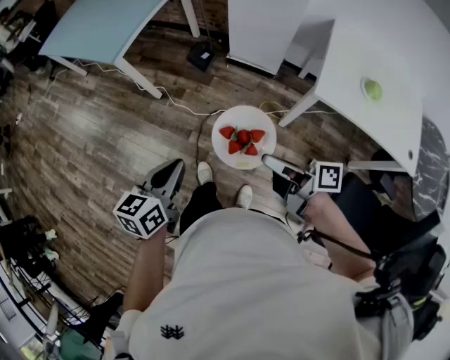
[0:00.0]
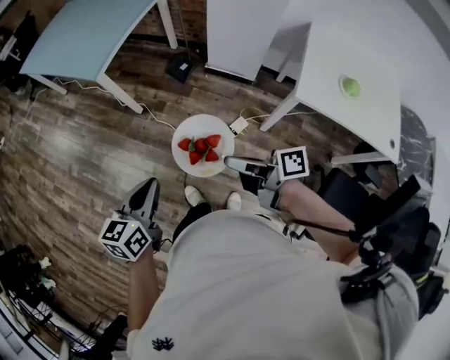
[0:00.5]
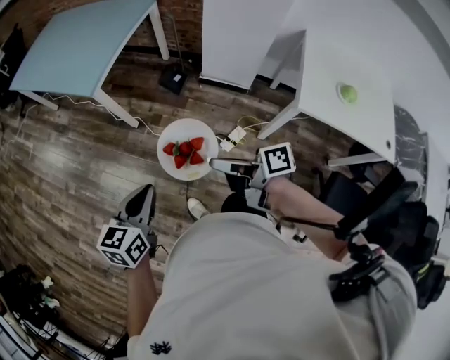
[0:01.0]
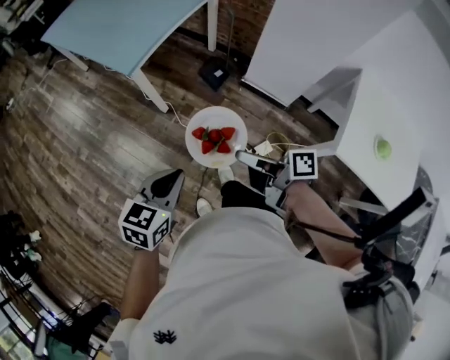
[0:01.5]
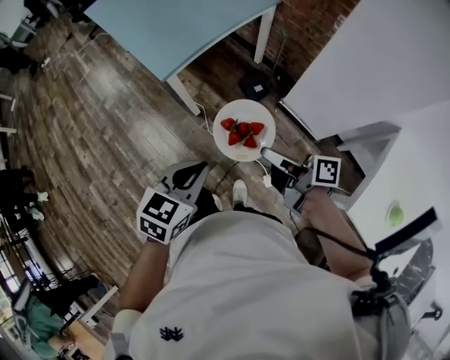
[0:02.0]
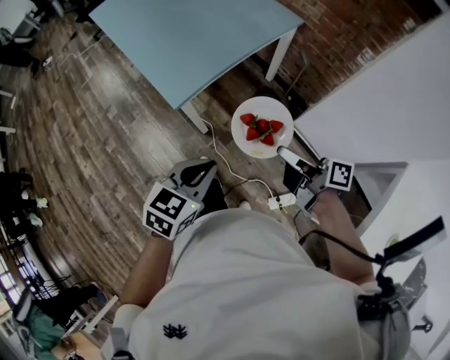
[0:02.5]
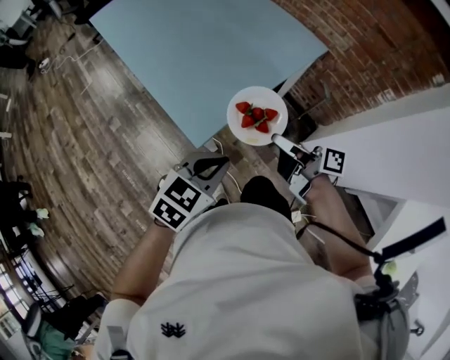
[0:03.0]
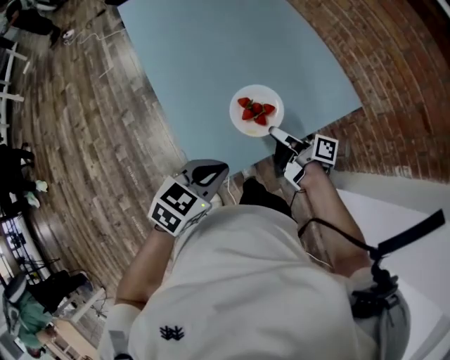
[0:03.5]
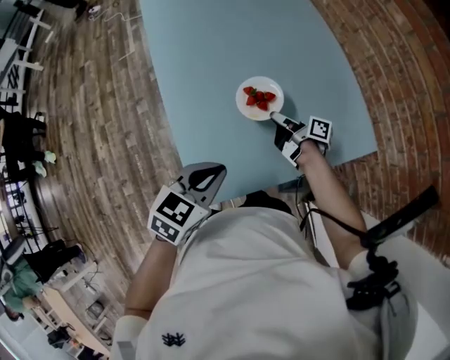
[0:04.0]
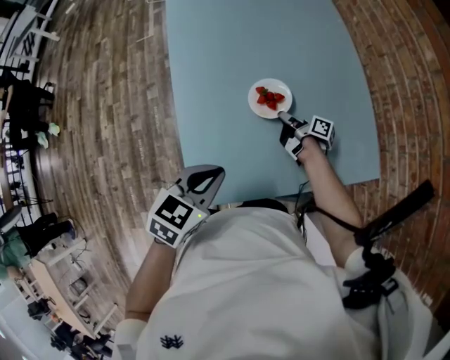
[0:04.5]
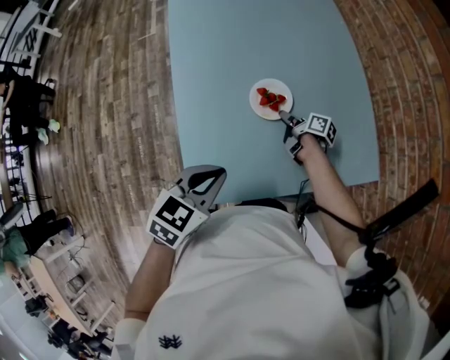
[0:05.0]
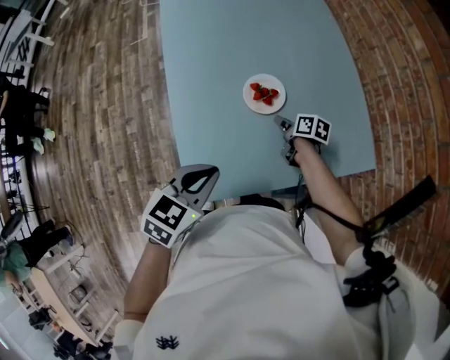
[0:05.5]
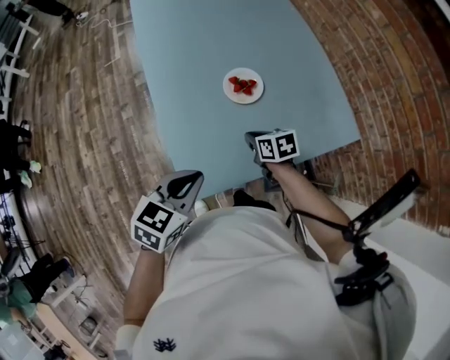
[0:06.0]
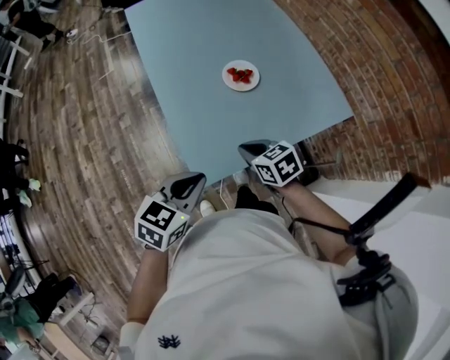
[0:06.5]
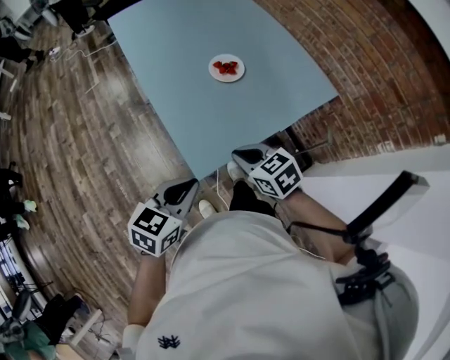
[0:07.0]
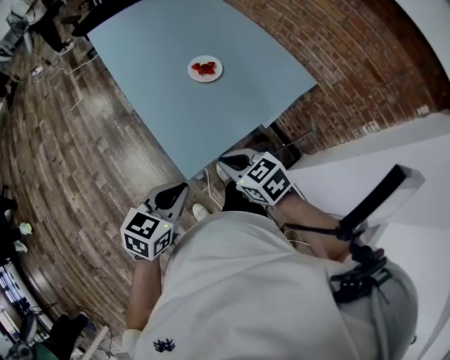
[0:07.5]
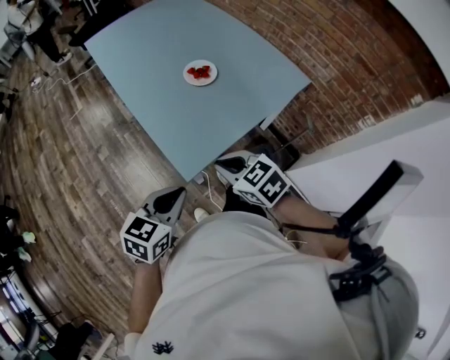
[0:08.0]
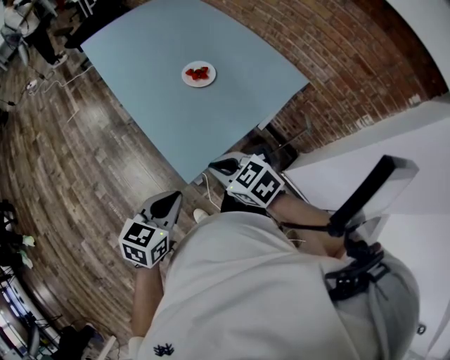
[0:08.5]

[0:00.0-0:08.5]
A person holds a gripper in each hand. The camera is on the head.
0:00.0 to 0:02.0: Both grippers move forward, approximately 35 cm.
0:02.0 to 0:04.0: Both grippers are carried forward, some 70 cm. The right gripper turns by about 20 degrees, while the left gripper swivels approximately 20 degrees.
0:04.0 to 0:06.5: The left gripper is displaced backward and to the left by roughly 15 cm. Meanwhile the right gripper shifts roughly 25 cm backward and to the left, twists about 70 degrees counterclockwise, seen from behind, and opens, then closes once more.
0:06.5 to 0:08.5: The left gripper moves backward and to the left, roughly 10 cm. The right gripper is displaced backward, upward and to the left by about 15 cm.

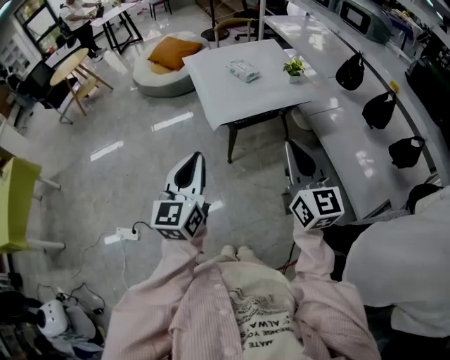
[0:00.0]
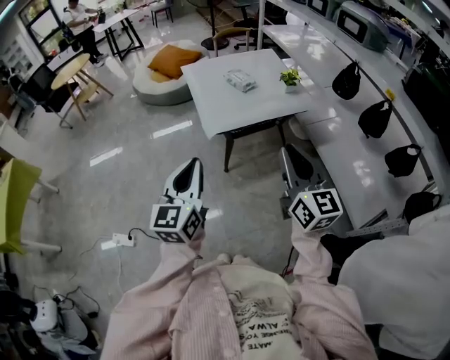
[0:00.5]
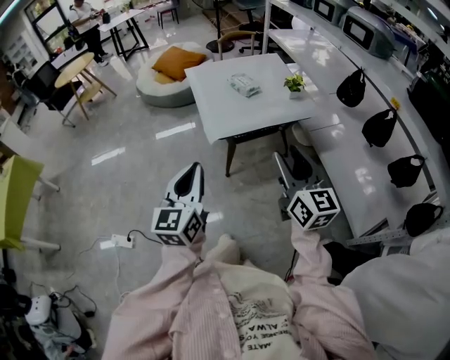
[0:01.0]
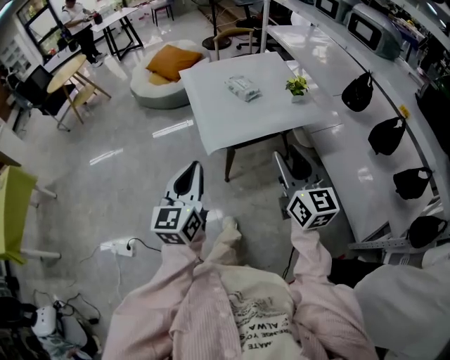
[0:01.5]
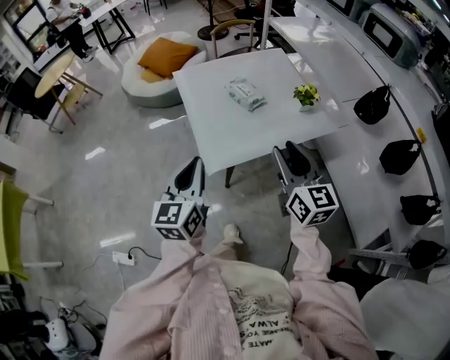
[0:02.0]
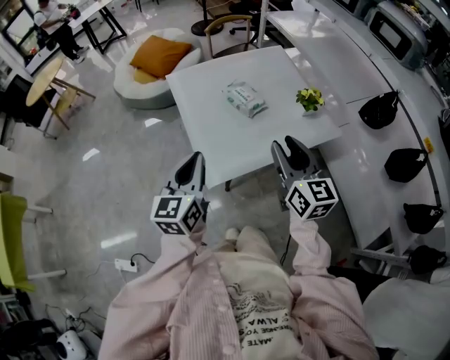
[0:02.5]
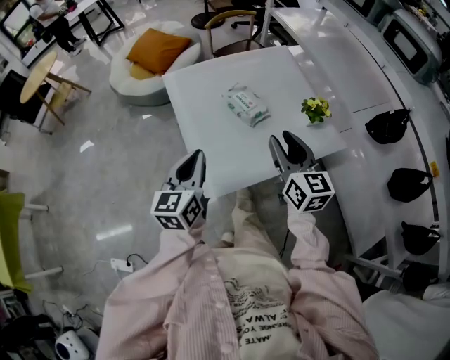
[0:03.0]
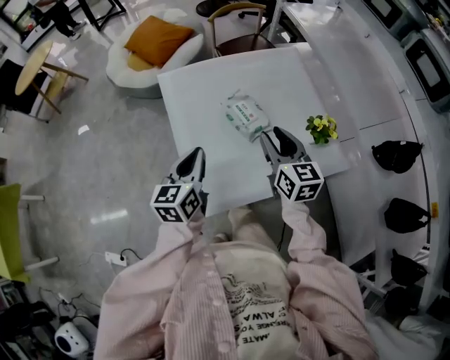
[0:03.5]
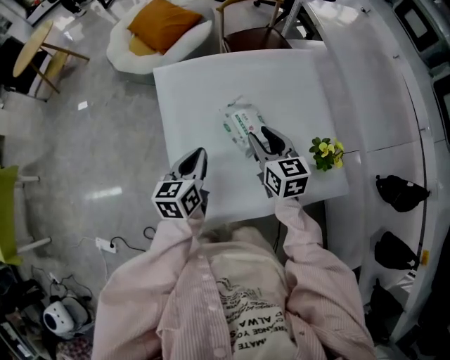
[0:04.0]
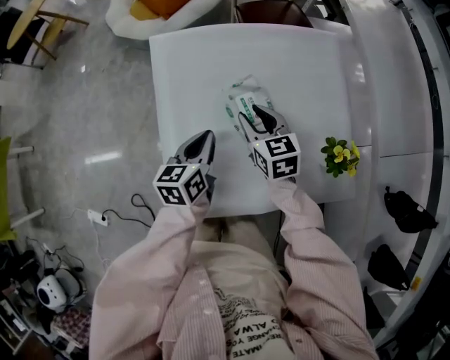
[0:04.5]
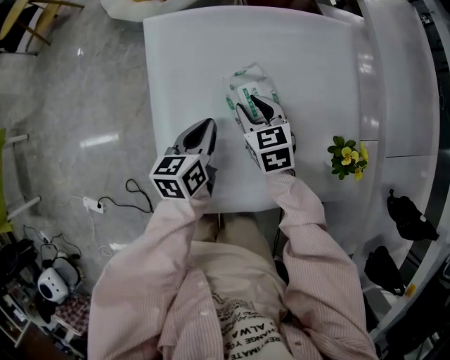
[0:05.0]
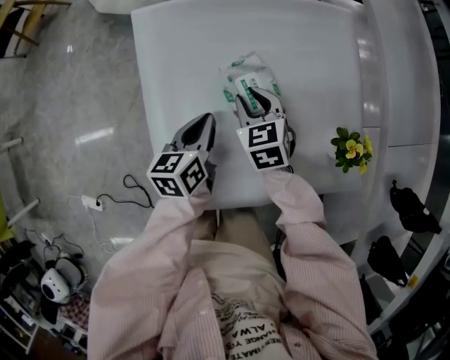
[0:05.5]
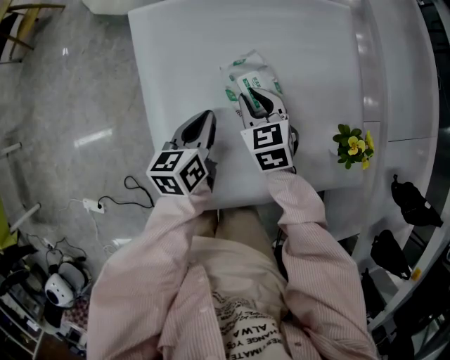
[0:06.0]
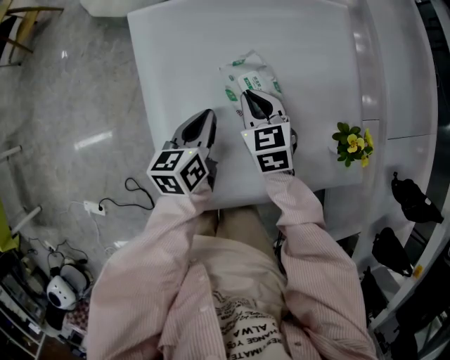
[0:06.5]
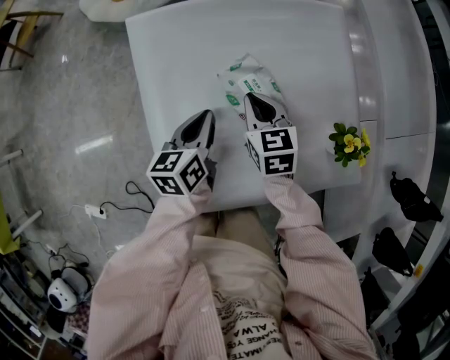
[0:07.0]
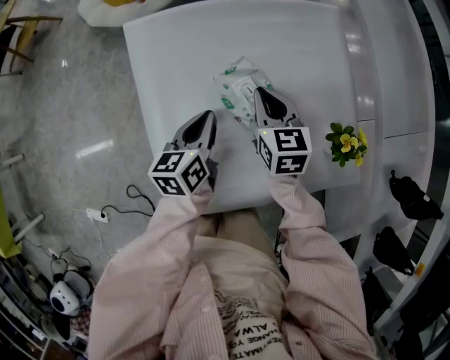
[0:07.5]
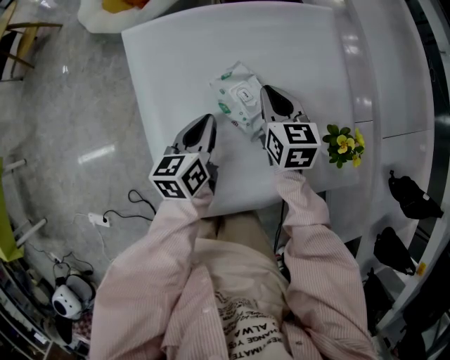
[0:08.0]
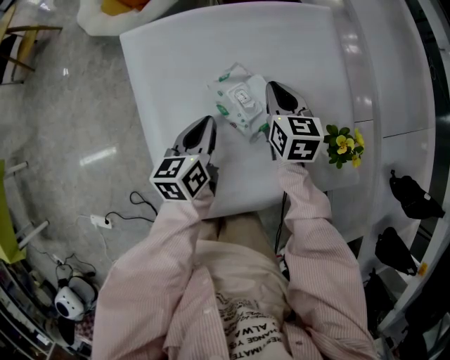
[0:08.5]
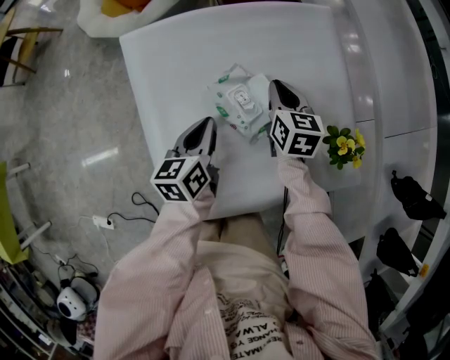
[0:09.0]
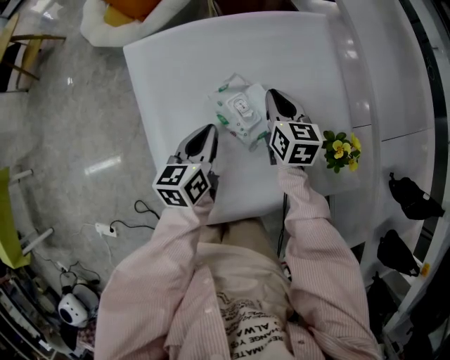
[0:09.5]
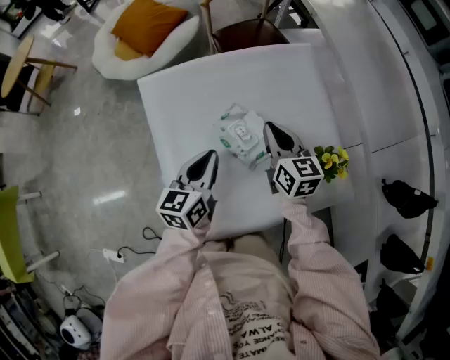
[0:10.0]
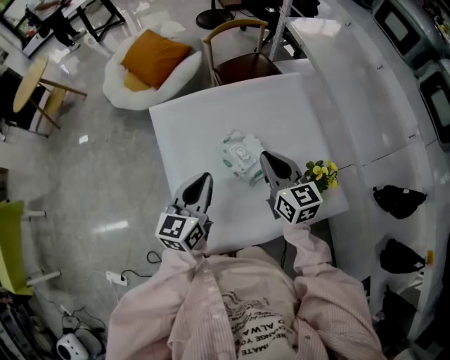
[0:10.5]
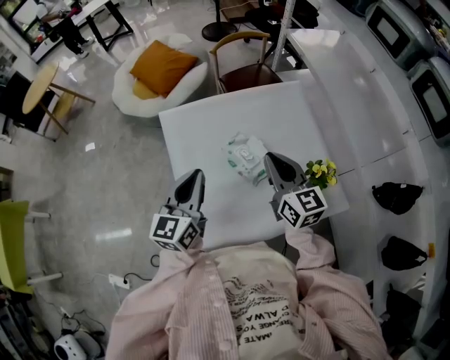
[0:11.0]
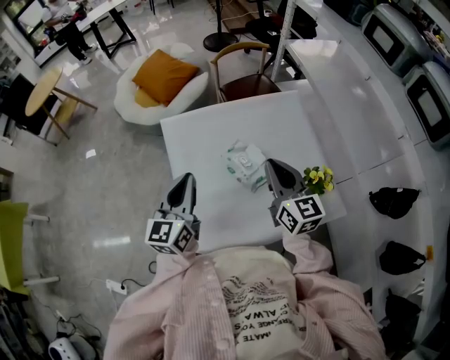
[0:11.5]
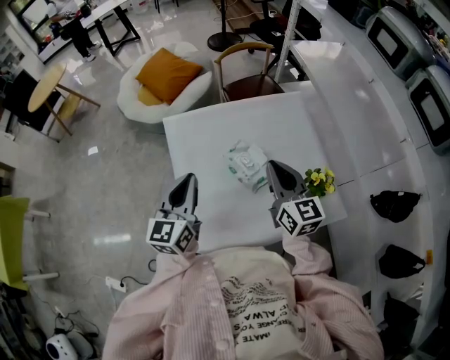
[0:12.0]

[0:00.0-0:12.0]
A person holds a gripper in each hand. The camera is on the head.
0:00.0 to 0:02.0: The grippers both shift forward by some 25 cm. The right gripper opens its fingers.
0:02.0 to 0:04.0: The two grippers go about 40 cm forward and downward. The left gripper changes its angle by approximately 20 degrees; the right gripper turns by some 30 degrees.
0:04.0 to 0:06.0: The left gripper shifts some 10 cm downward, while the right gripper goes some 15 cm downward and forward, and swivels about 30 degrees.
0:06.0 to 0:08.0: The right gripper is displaced to the right and upward by about 10 cm, and changes its angle by some 20 degrees.
0:08.0 to 0:10.0: Both grippers travel together upward, roughly 5 cm.
0:10.0 to 0:12.0: The left gripper shifts approximately 15 cm upward and to the left, and changes its angle by about 20 degrees, while the right gripper shifts approximately 15 cm upward and backward.

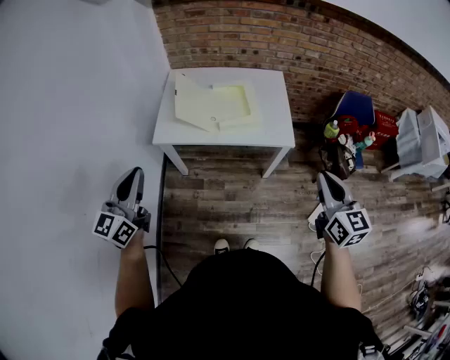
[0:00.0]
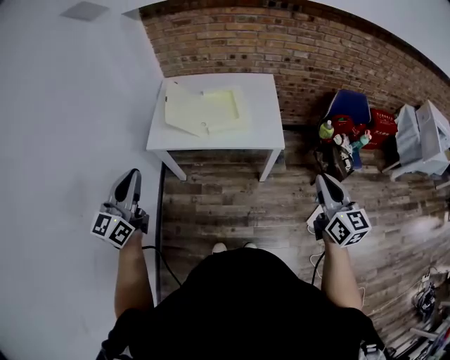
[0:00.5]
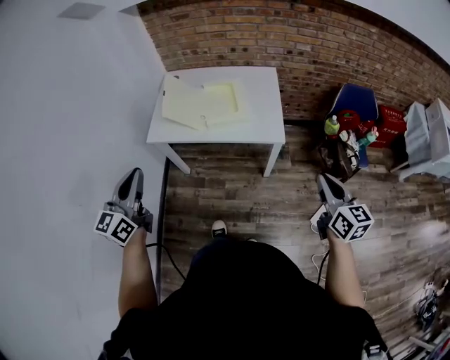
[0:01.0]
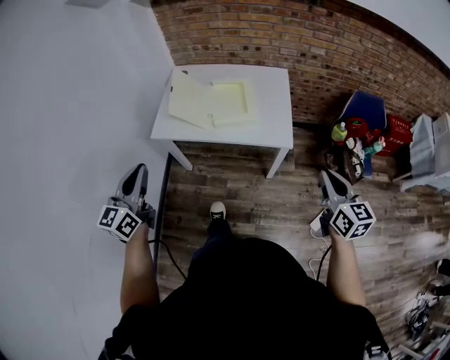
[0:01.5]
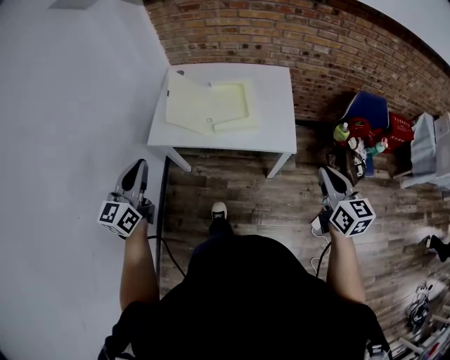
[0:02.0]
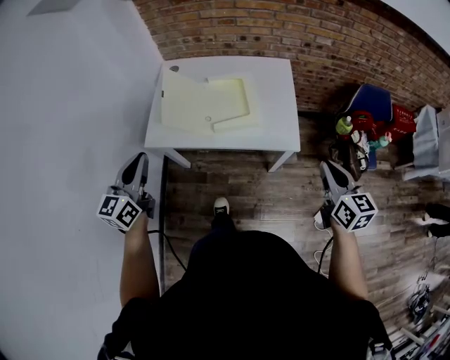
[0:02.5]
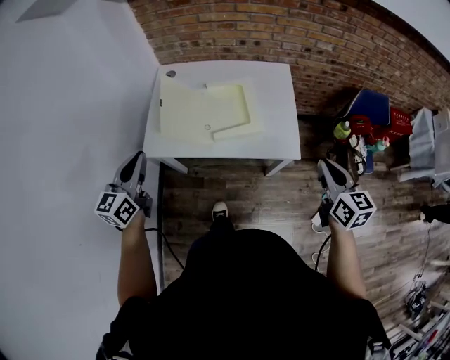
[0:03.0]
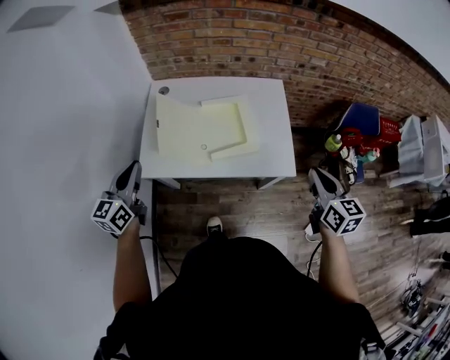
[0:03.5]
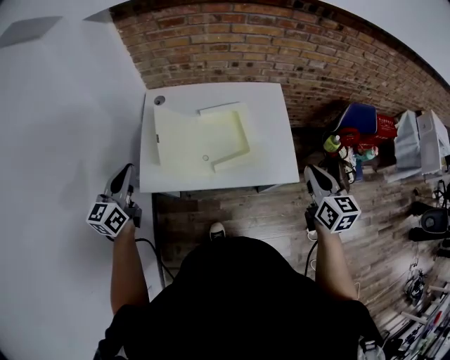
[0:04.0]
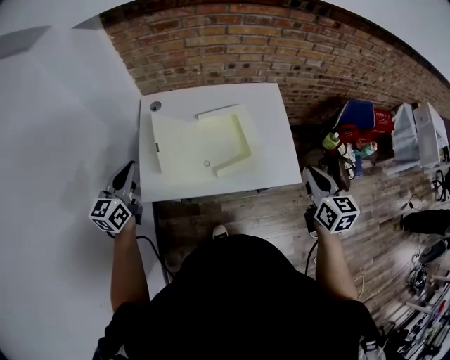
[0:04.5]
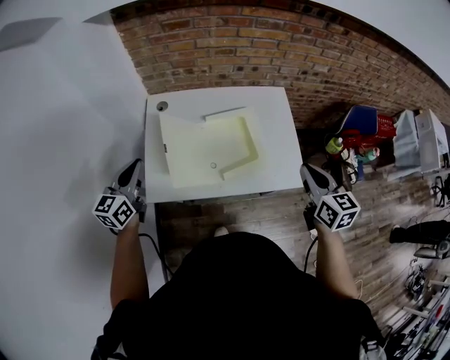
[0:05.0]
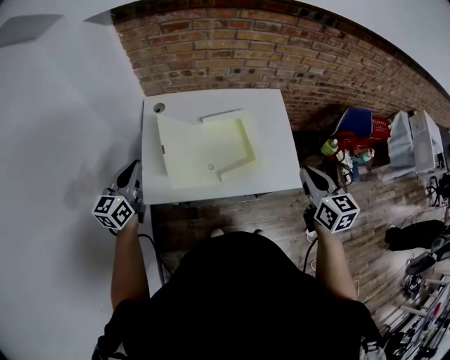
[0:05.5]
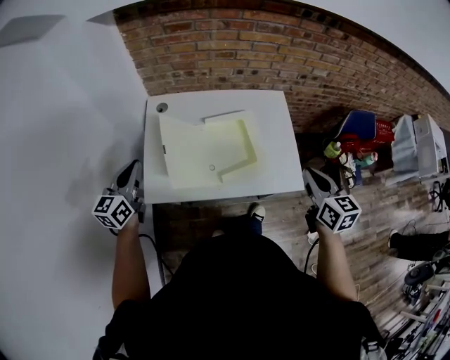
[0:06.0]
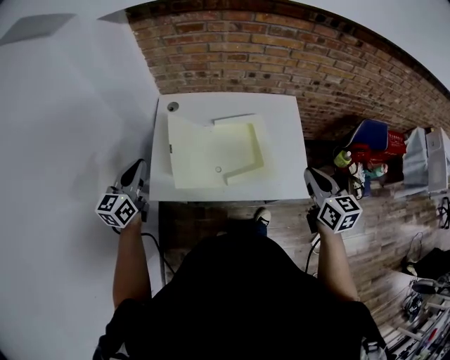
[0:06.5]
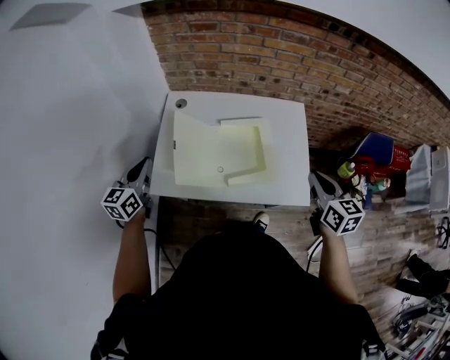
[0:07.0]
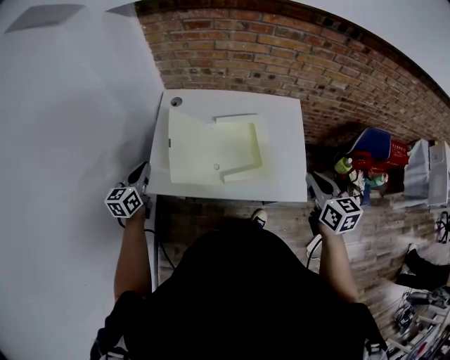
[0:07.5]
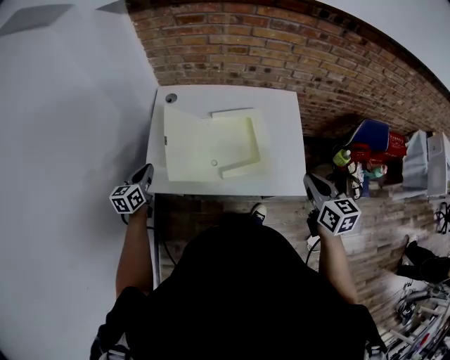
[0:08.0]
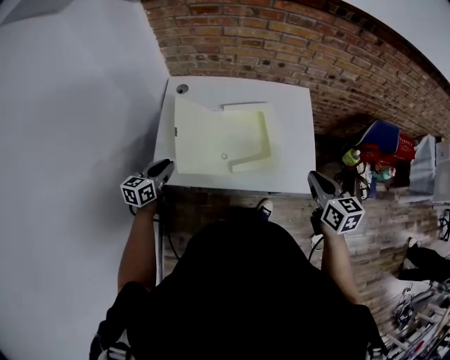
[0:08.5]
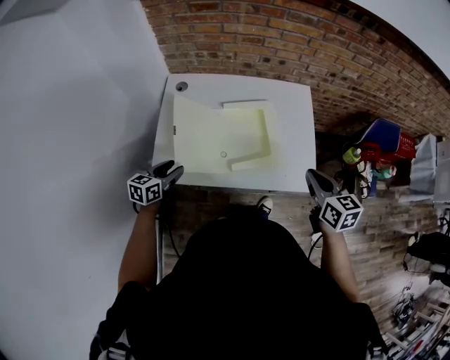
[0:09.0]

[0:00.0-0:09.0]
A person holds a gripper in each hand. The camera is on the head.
0:00.0 to 0:02.0: The left gripper moves forward and to the right, some 10 cm; the right gripper shifts approximately 15 cm forward, to the right and downward.
0:02.0 to 0:04.5: The two grippers go some 30 cm forward and to the left.
0:04.5 to 0:07.0: The right gripper goes some 5 cm forward.
0:07.0 to 0:09.0: The left gripper heads downward, covering roughly 15 cm, rotates approximately 30 degrees, and opens its fingers. The right gripper travels downward by about 5 cm.
